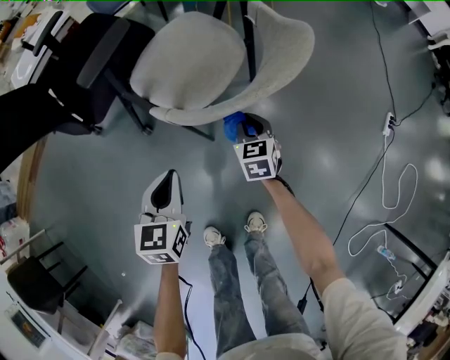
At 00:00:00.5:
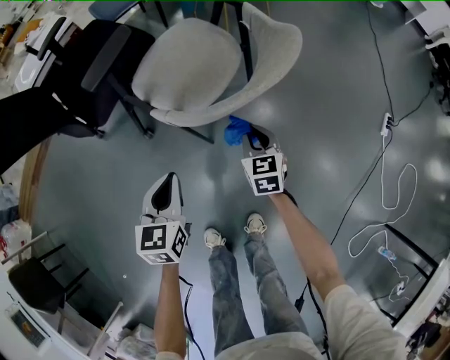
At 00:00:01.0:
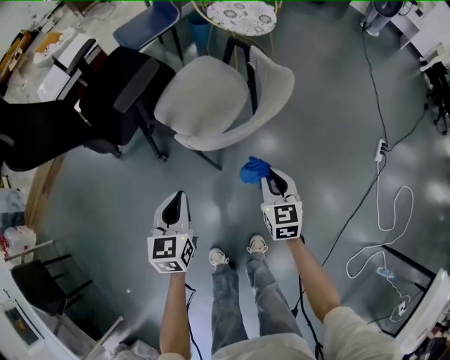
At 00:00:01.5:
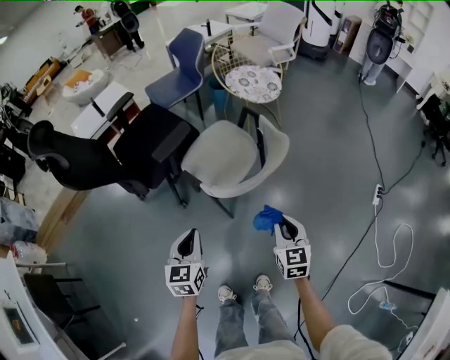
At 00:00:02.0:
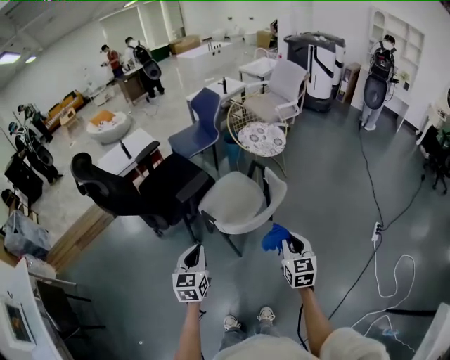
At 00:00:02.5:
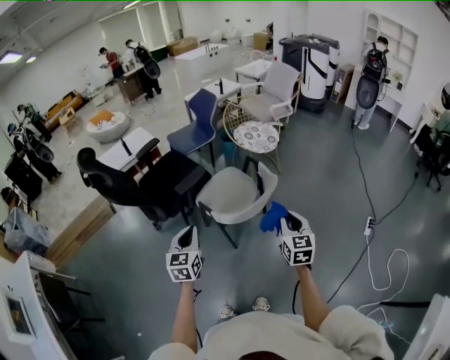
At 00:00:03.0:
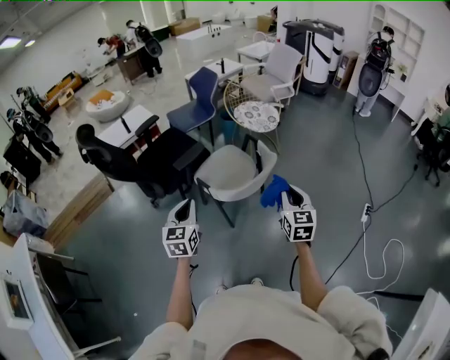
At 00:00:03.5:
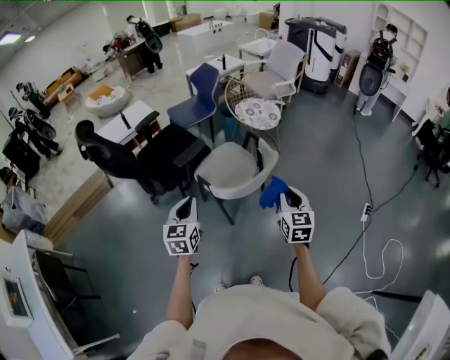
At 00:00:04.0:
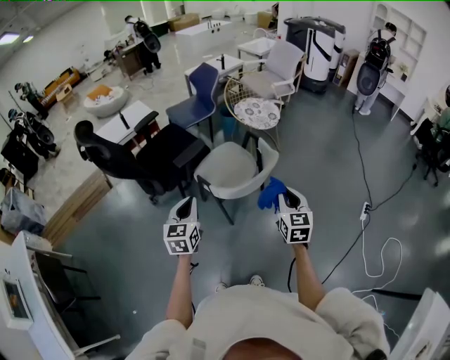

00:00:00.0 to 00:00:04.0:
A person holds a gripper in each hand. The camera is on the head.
00:00:00.0 to 00:00:02.0: The grippers both shift upward by some 35 cm. The right gripper turns by about 20 degrees.
00:00:02.0 to 00:00:04.0: The grippers both shift upward by some 5 cm.

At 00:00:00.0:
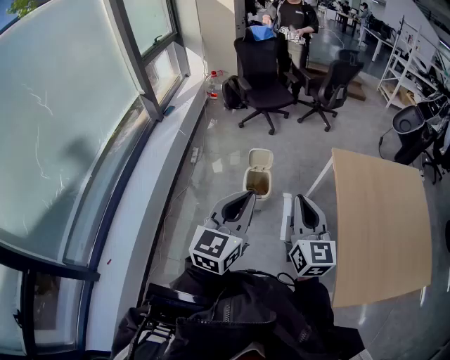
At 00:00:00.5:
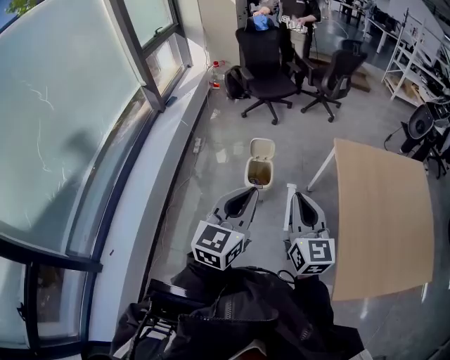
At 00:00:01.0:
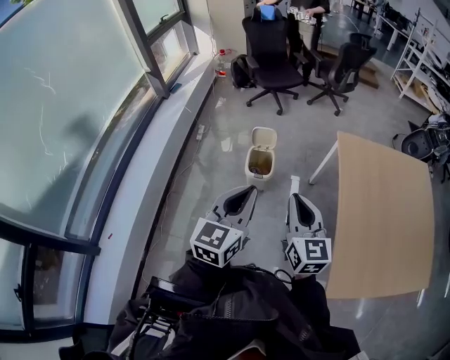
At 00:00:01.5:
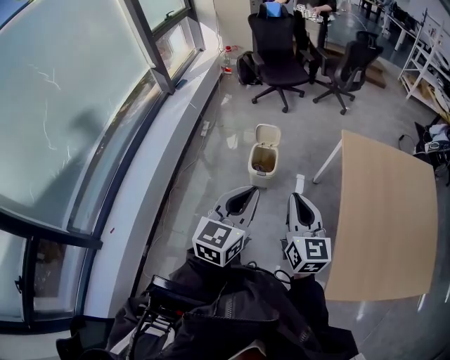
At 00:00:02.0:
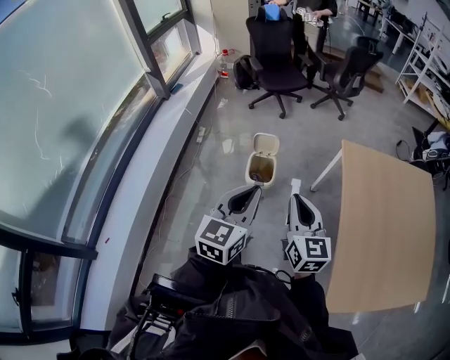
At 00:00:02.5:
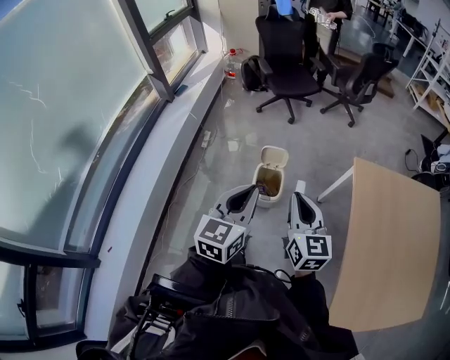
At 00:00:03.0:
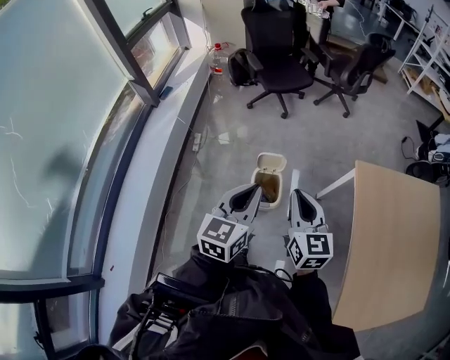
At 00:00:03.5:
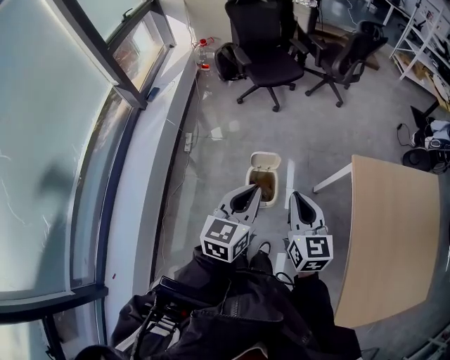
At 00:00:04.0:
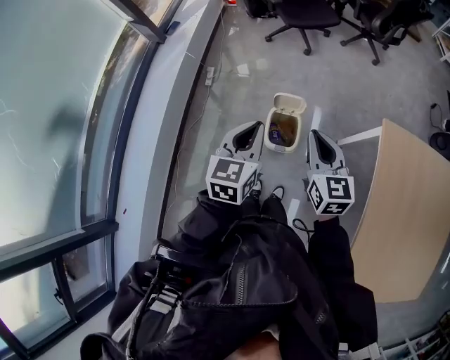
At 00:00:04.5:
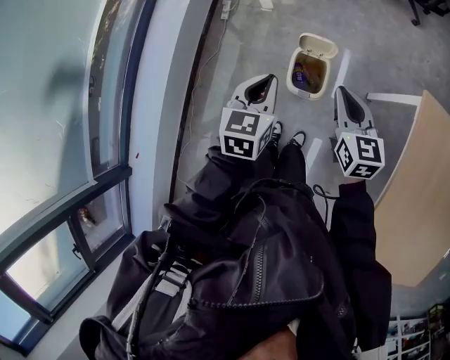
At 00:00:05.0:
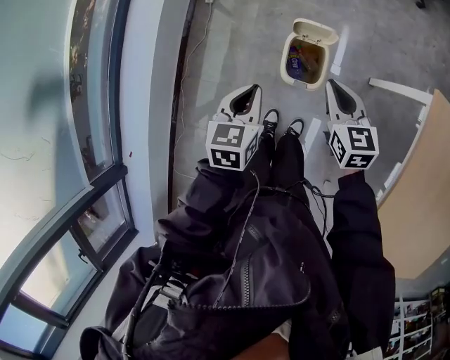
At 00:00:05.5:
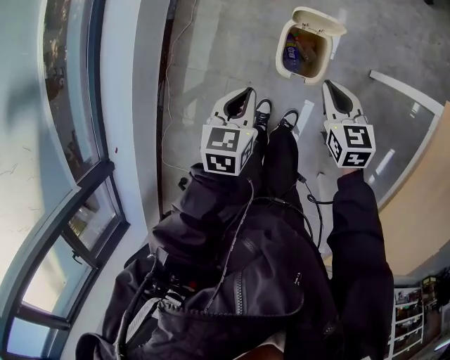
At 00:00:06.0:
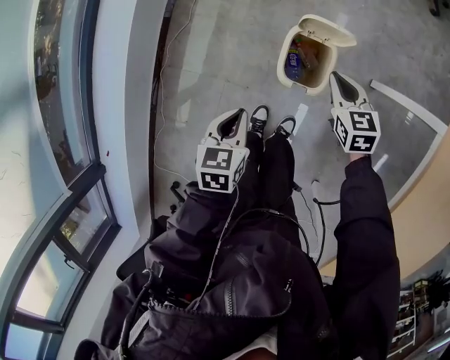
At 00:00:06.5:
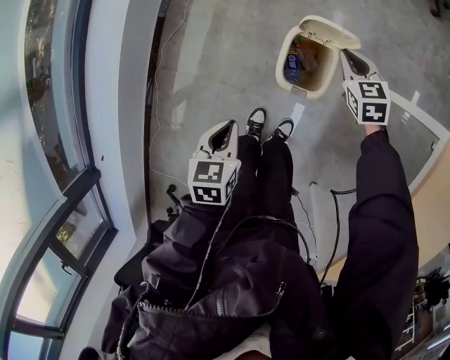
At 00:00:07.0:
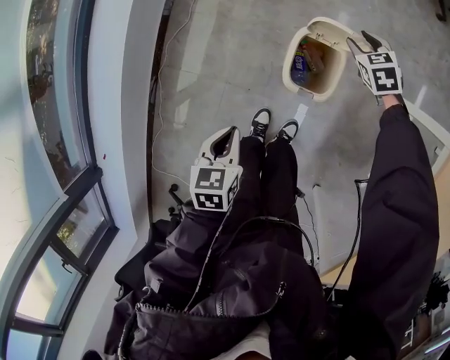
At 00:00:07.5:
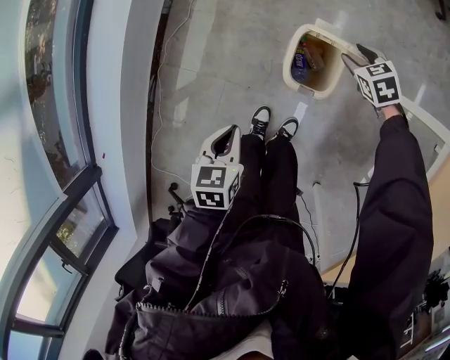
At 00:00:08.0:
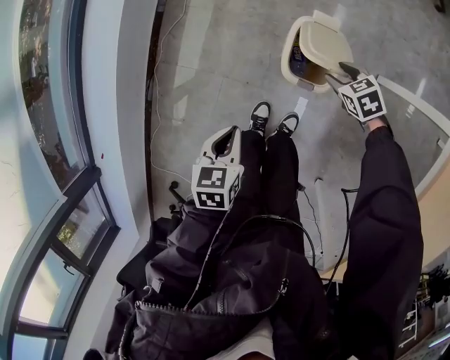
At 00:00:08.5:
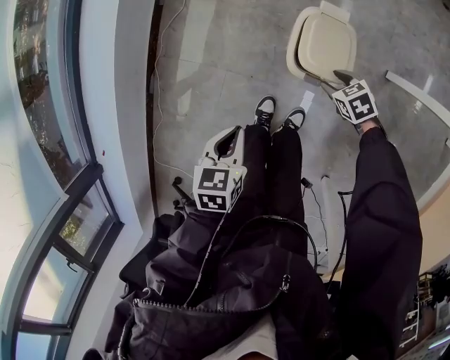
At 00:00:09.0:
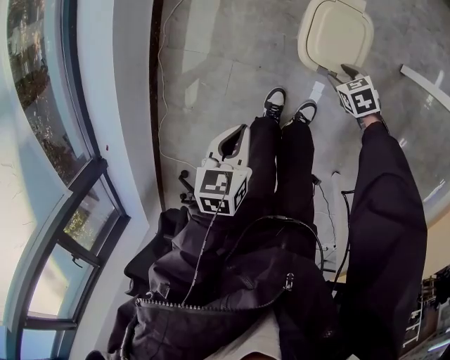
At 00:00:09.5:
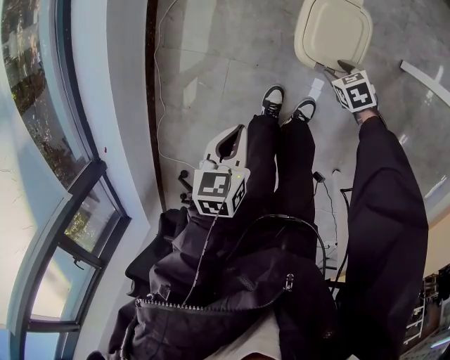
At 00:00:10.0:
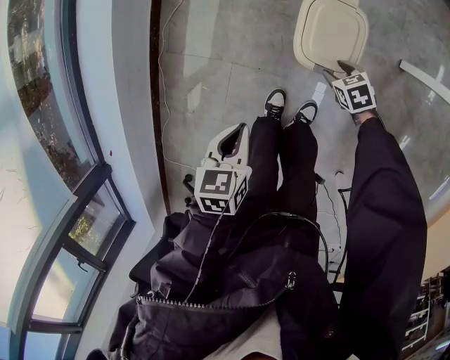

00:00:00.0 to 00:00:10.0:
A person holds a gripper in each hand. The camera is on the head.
00:00:00.0 to 00:00:02.0: The right gripper heads downward, covering about 10 cm. Meanwhile the left gripper heads downward and to the right, covering approximately 10 cm.
00:00:02.0 to 00:00:04.0: The two grippers go about 30 cm forward.
00:00:04.0 to 00:00:06.0: Both grippers travel together downward, roughly 35 cm. The right gripper swivels roughly 30 degrees, while the left gripper tips its fingers downward by about 30 degrees.
00:00:06.0 to 00:00:08.0: The right gripper travels downward by roughly 15 cm, changes its angle by roughly 30 degrees, and opens; the left gripper travels downward and backward by roughly 10 cm.
00:00:08.0 to 00:00:10.0: The right gripper shifts roughly 15 cm downward and backward; the left gripper is displaced downward by about 5 cm.

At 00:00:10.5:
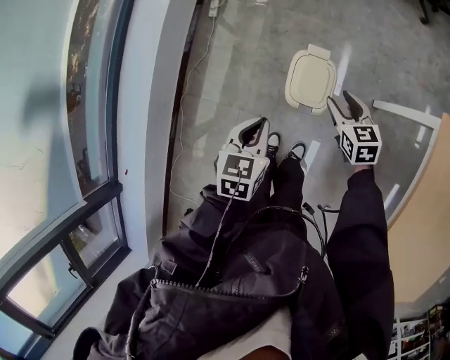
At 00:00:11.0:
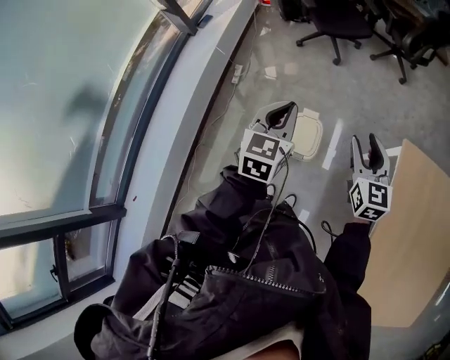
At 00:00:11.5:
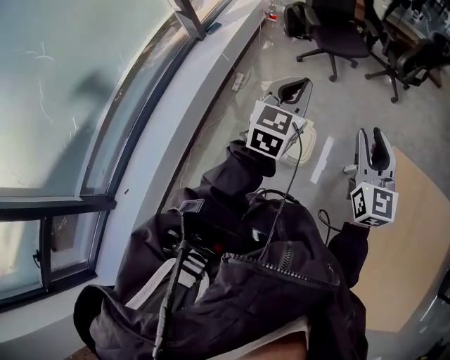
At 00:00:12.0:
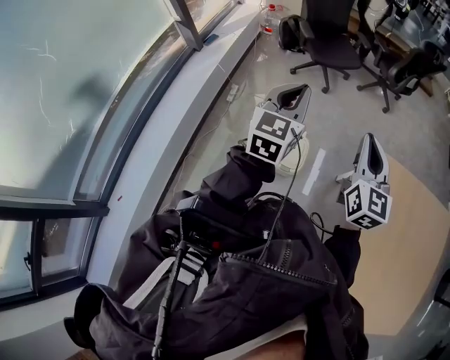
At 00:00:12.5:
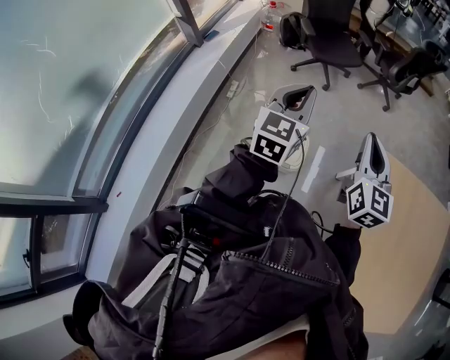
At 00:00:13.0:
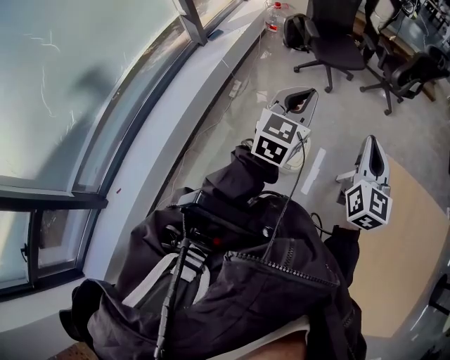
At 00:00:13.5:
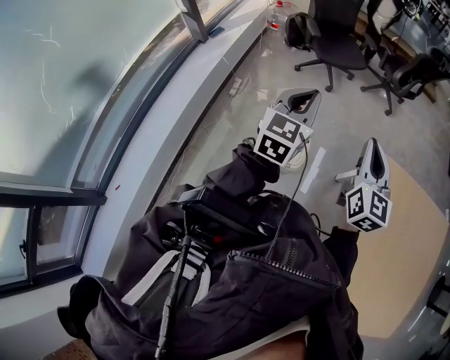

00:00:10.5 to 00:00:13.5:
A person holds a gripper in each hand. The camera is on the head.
00:00:10.5 to 00:00:12.0: The two grippers go some 50 cm upward. The left gripper points its fingers approximately 40 degrees further upward, while the right gripper points its fingers roughly 40 degrees further upward, and closes.
00:00:12.0 to 00:00:13.5: There are only small adjustments of the grippers.

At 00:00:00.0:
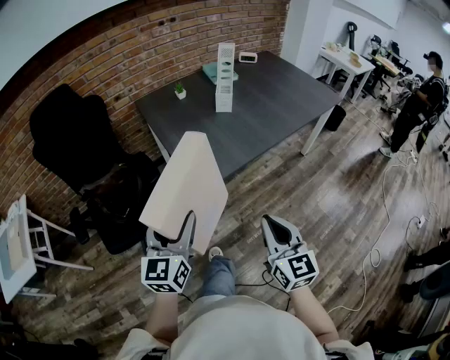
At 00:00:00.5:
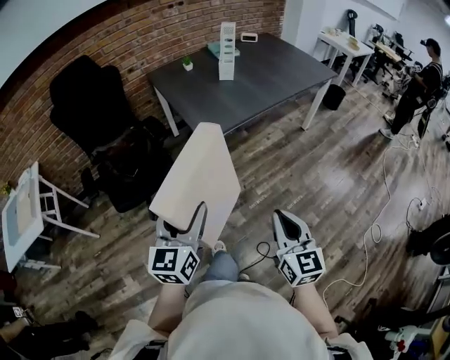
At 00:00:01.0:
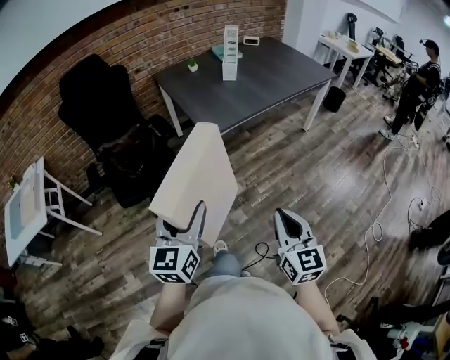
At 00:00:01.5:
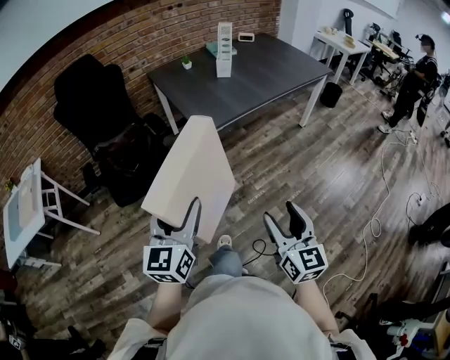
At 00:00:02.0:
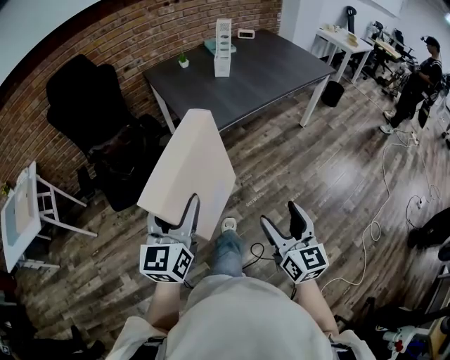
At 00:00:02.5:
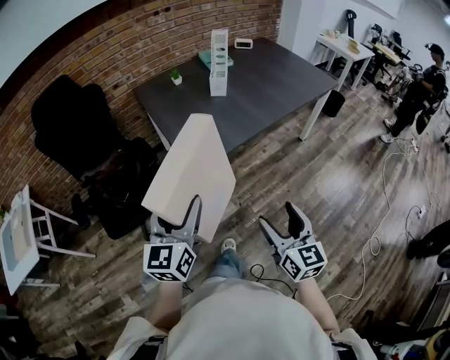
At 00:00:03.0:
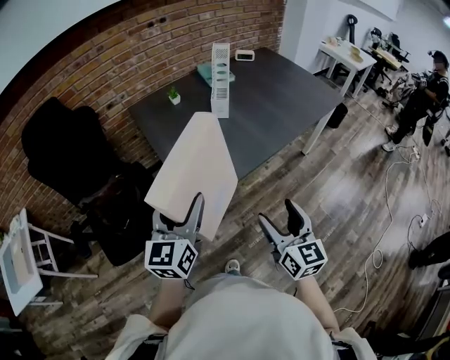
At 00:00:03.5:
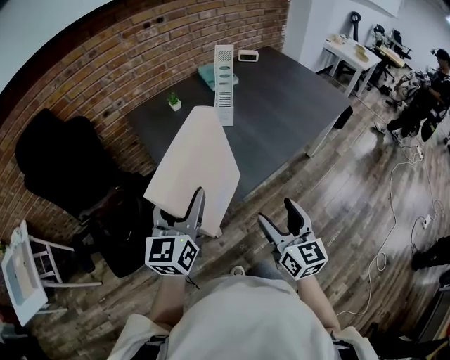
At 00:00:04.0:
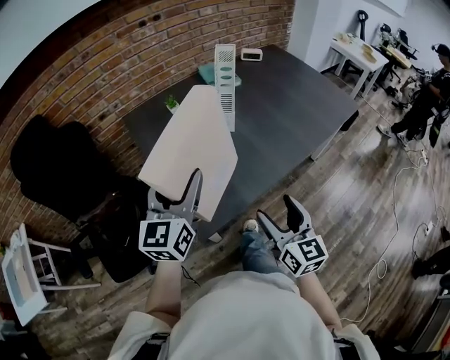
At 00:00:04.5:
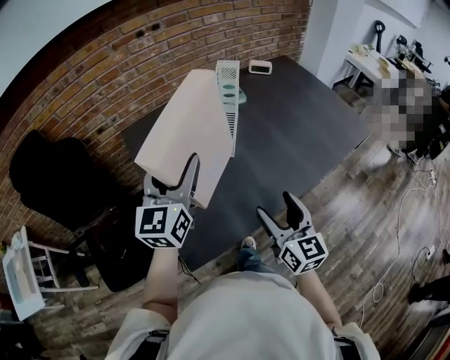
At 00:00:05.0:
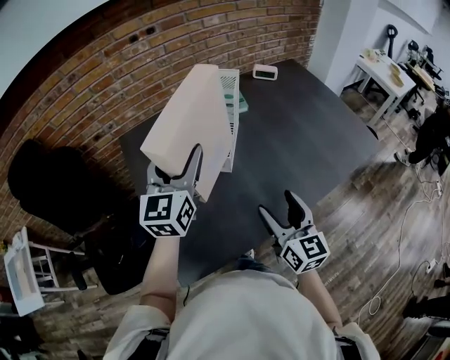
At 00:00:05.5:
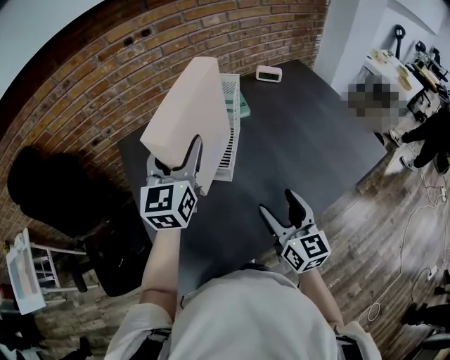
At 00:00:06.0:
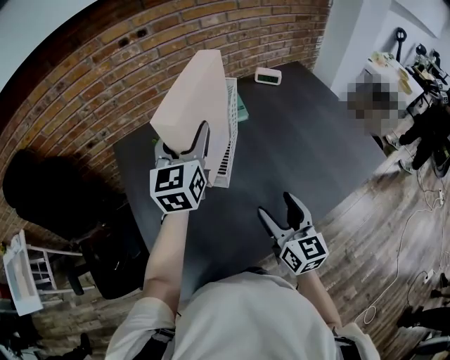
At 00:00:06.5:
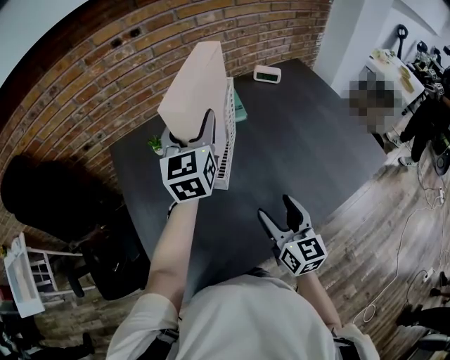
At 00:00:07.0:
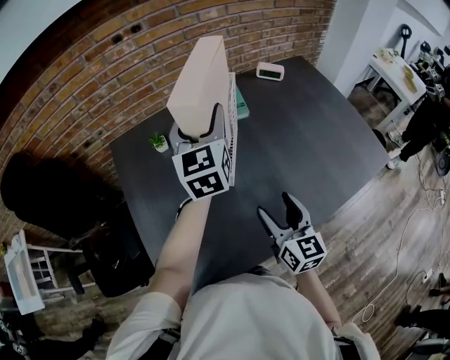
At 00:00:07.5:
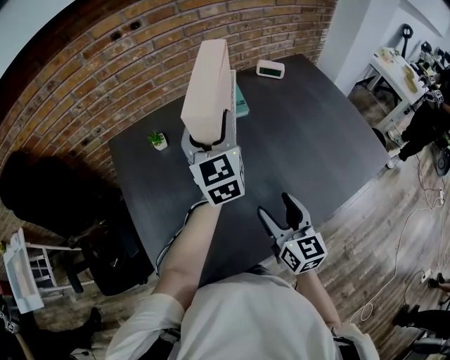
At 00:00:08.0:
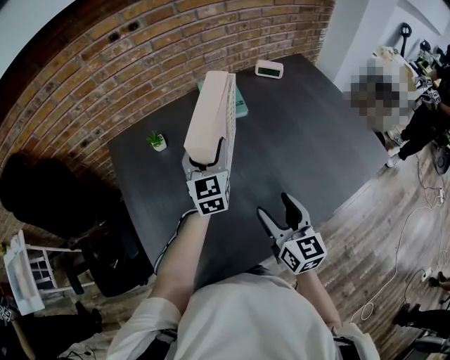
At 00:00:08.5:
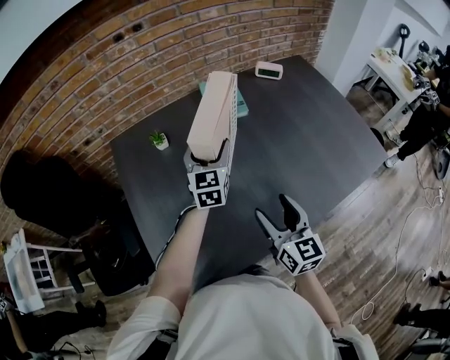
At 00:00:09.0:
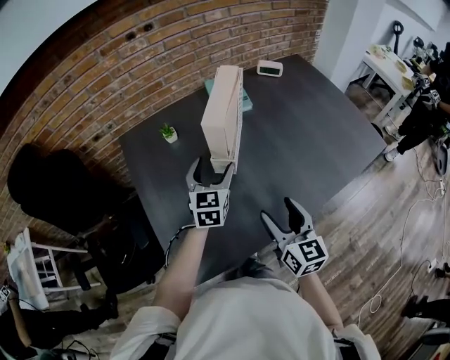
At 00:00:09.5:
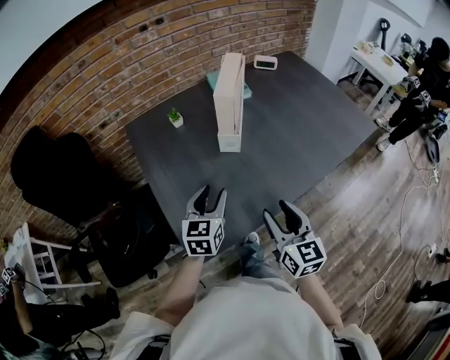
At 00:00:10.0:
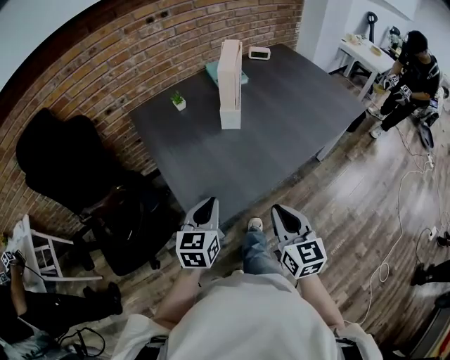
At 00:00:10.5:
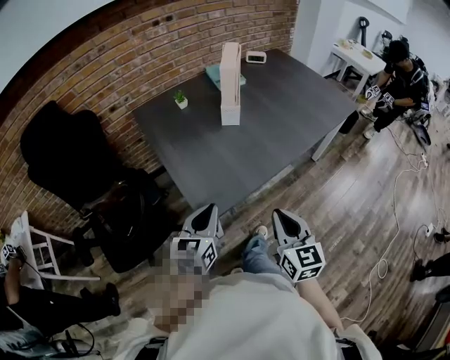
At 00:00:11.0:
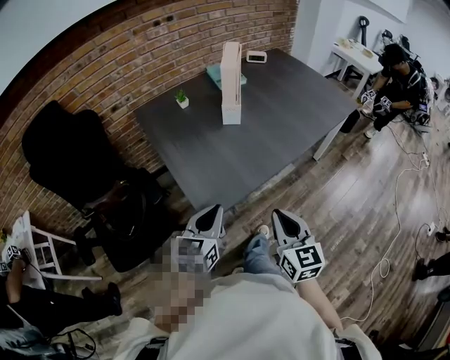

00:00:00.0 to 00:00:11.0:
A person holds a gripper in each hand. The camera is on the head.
00:00:00.0 to 00:00:02.0: Both grippers travel together backward, roughly 20 cm. The right gripper opens up.
00:00:02.0 to 00:00:03.5: The grippers both shift forward by roughly 40 cm.
00:00:03.5 to 00:00:05.5: Both grippers travel together forward, some 35 cm.
00:00:05.5 to 00:00:07.5: The left gripper goes approximately 15 cm forward and to the right. The right gripper ends up approximately 5 cm from where it was.
00:00:07.5 to 00:00:09.0: The right gripper moves backward, about 10 cm, while the left gripper goes about 15 cm downward and backward, and changes its angle by approximately 20 degrees.
00:00:09.0 to 00:00:11.0: Both grippers move backward, some 35 cm. The left gripper swivels some 20 degrees, and closes, while the right gripper closes.
